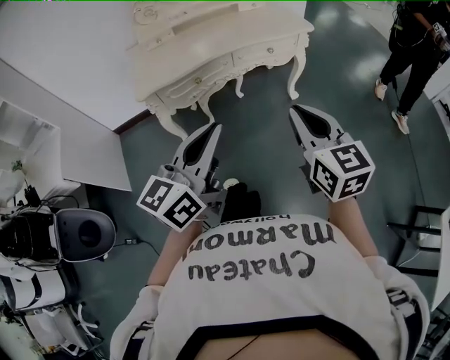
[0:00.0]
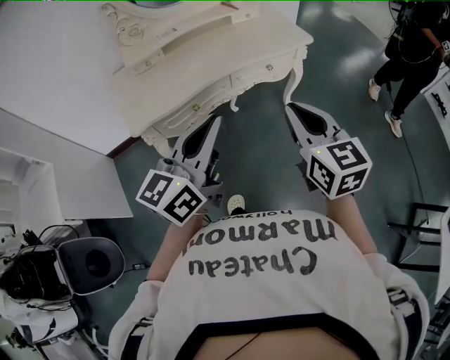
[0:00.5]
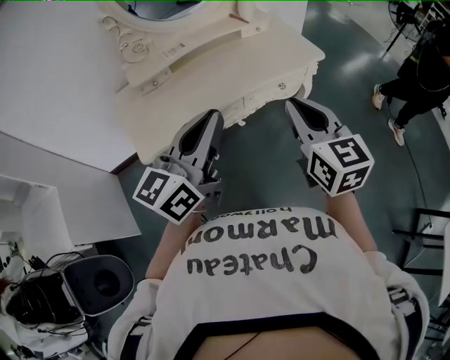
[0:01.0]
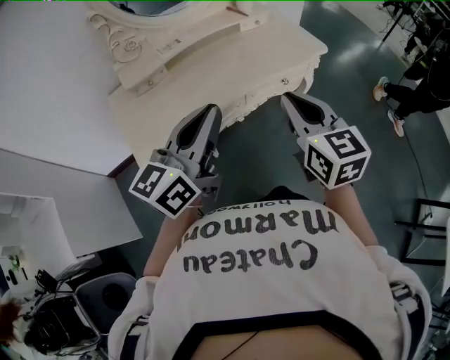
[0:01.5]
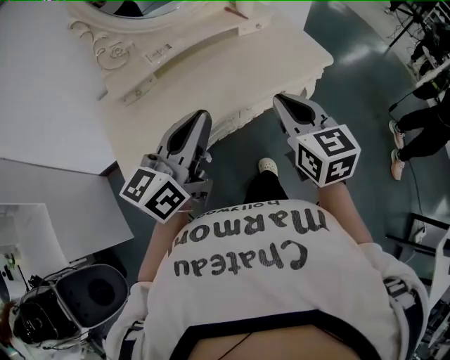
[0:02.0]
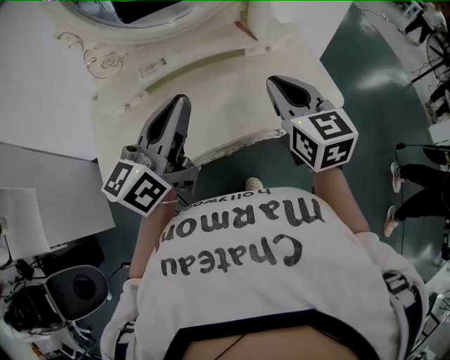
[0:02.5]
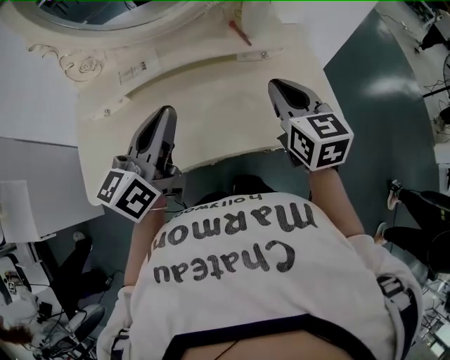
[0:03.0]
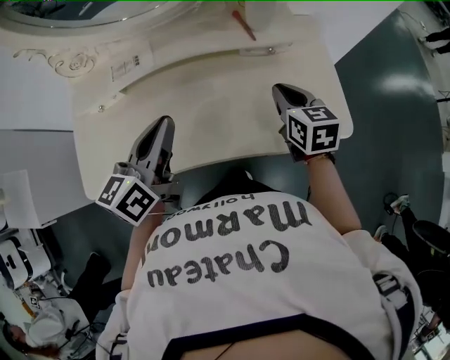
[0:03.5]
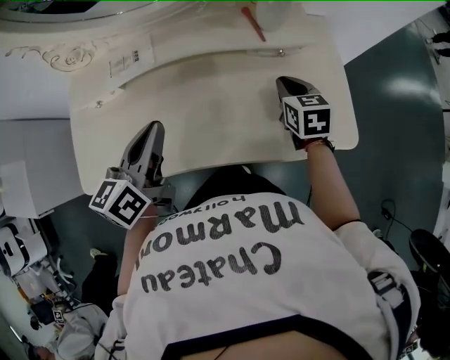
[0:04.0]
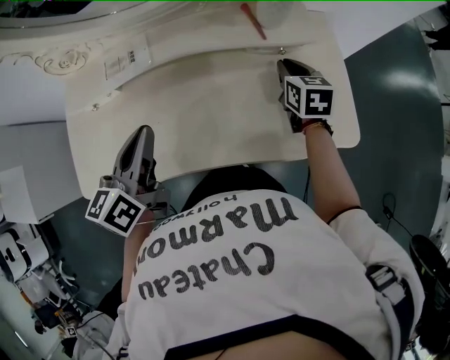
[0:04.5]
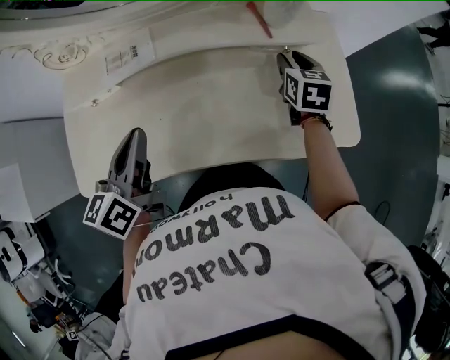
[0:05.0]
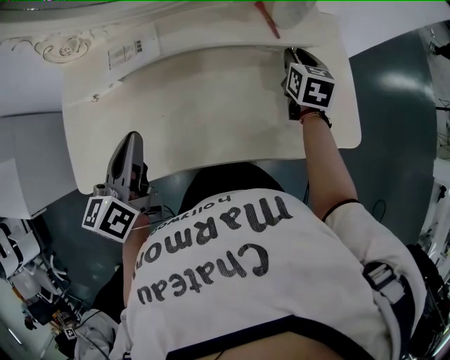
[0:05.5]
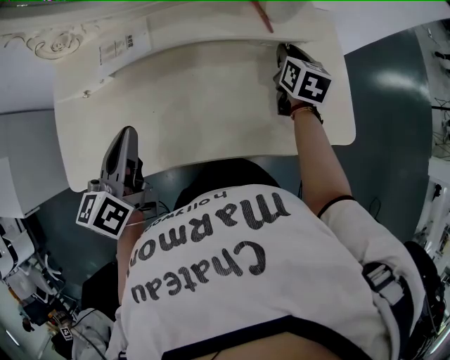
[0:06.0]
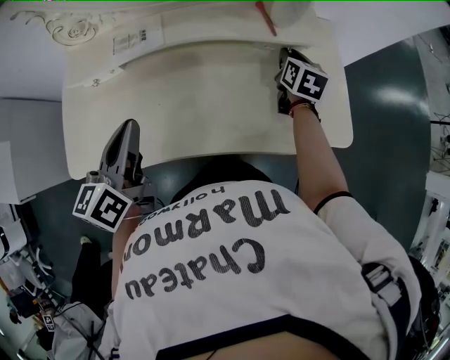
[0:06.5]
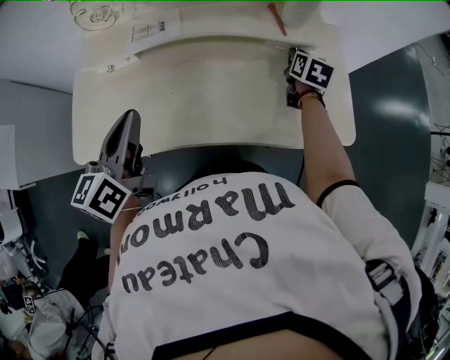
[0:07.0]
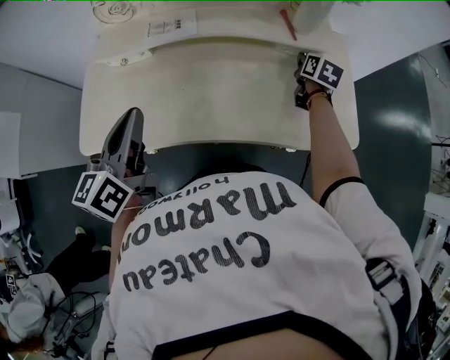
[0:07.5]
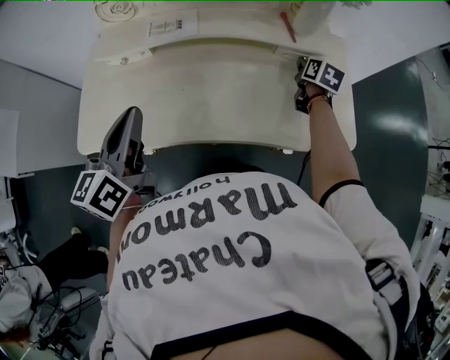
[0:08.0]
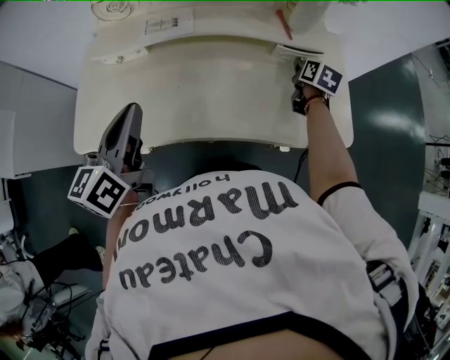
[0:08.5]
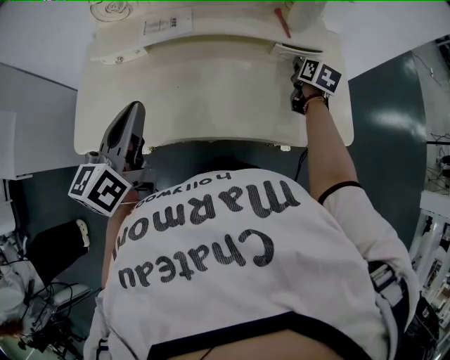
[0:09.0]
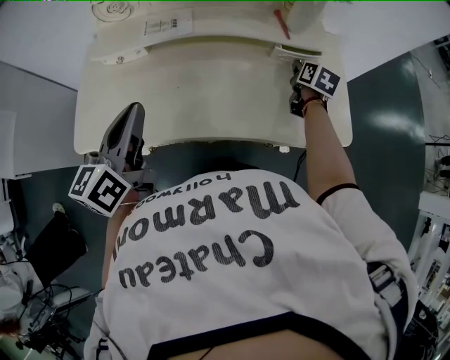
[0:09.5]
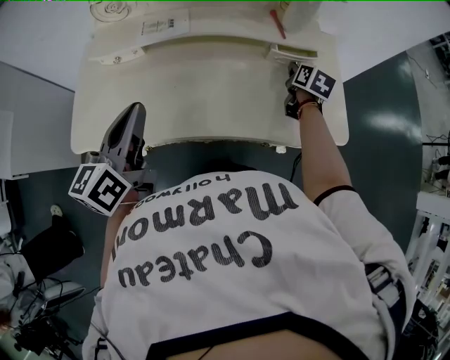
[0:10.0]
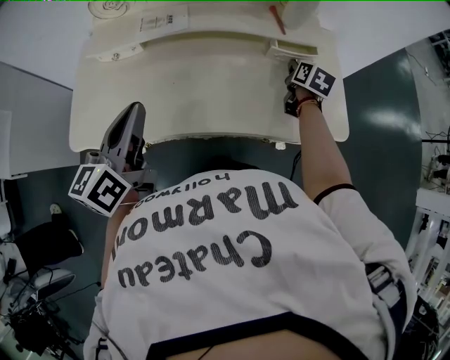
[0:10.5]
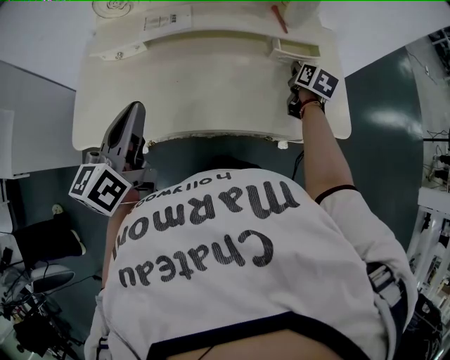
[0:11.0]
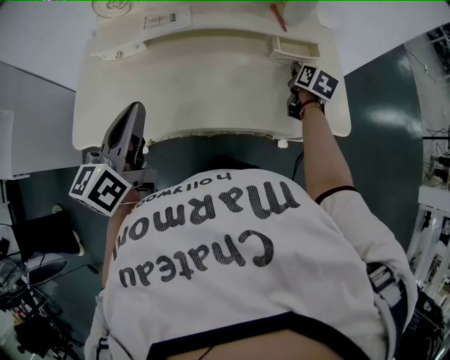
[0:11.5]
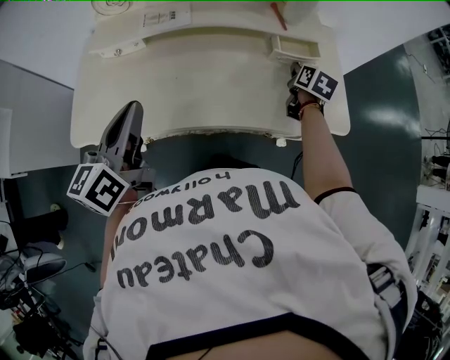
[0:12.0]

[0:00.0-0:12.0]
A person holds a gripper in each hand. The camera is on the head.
0.0 to 2.0 s: The right gripper shifts approximately 35 cm forward and to the left; the left gripper moves forward, approximately 35 cm.
2.0 to 4.0 s: The left gripper shifts some 25 cm forward and downward, and turns by about 40 degrees; the right gripper moves forward and downward, roughly 40 cm, and changes its angle by about 30 degrees.
4.0 to 6.0 s: The right gripper shifts approximately 10 cm forward; the left gripper is displaced to the left by about 5 cm.
6.0 to 8.0 s: The left gripper moves backward and upward, approximately 10 cm.
8.0 to 10.0 s: The grippers move only a little.
10.0 to 12.0 s: The grippers make only small movements.

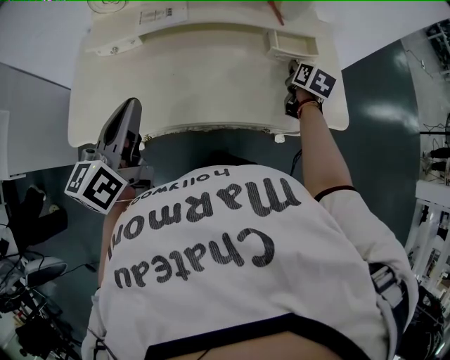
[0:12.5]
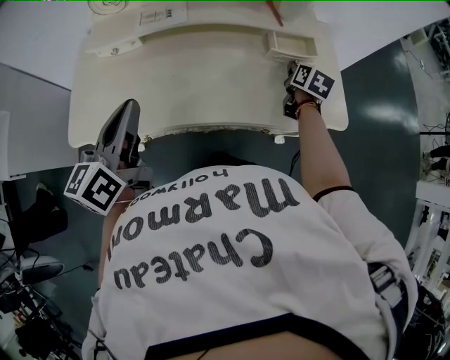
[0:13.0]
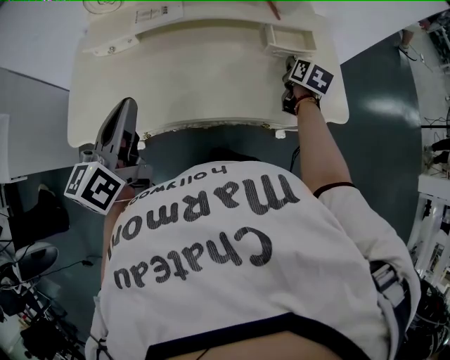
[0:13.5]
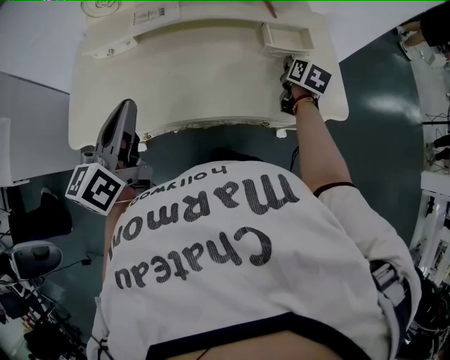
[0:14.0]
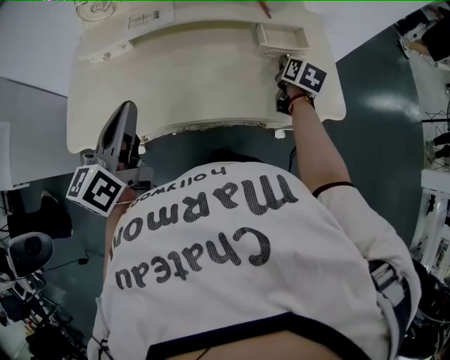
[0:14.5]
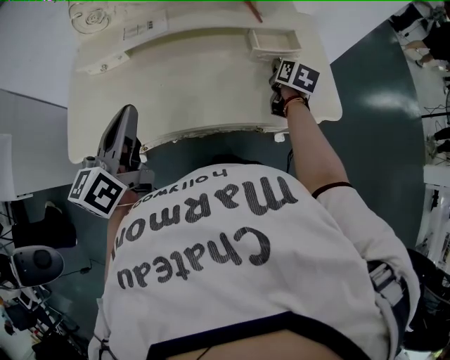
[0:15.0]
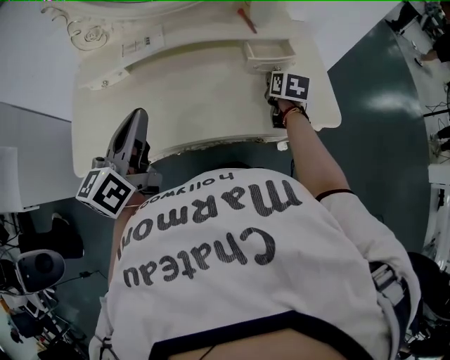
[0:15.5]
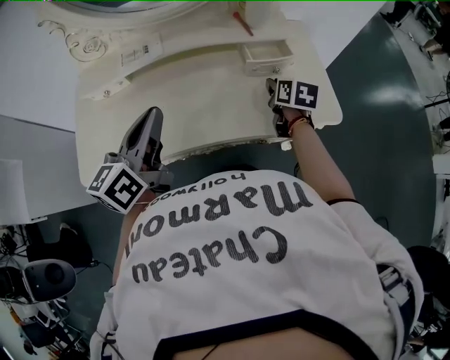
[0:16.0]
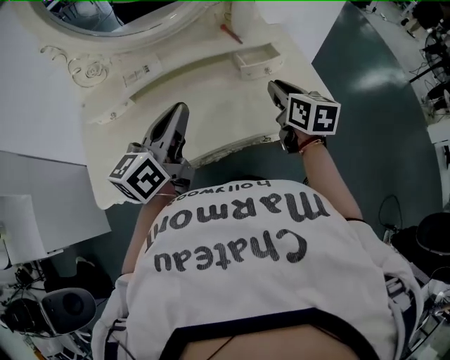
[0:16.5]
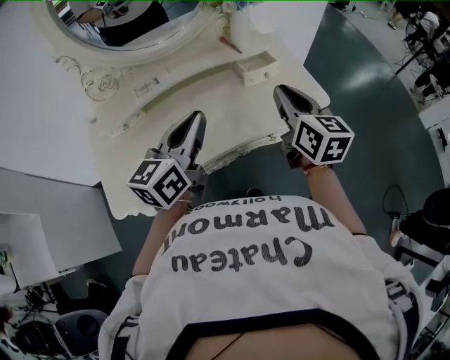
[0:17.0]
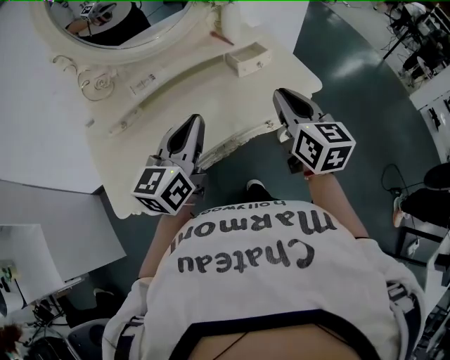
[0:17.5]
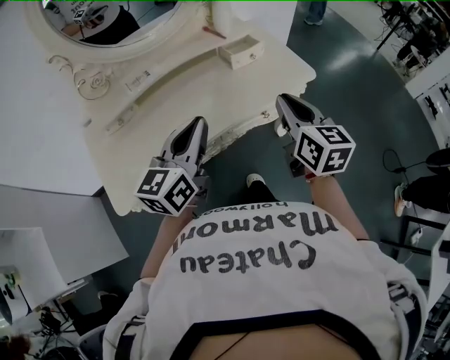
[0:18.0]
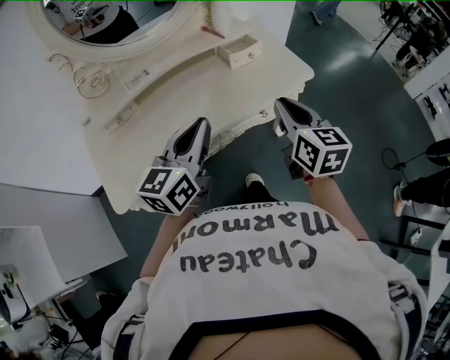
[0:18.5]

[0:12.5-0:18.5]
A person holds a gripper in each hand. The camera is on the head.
12.5 to 14.5 s: Neither gripper changes place.
14.5 to 16.5 s: The left gripper travels to the right and forward by roughly 10 cm, and swivels some 30 degrees, while the right gripper is displaced upward and backward by roughly 15 cm.
16.5 to 18.5 s: The left gripper moves backward, roughly 10 cm; the right gripper goes approximately 20 cm backward.

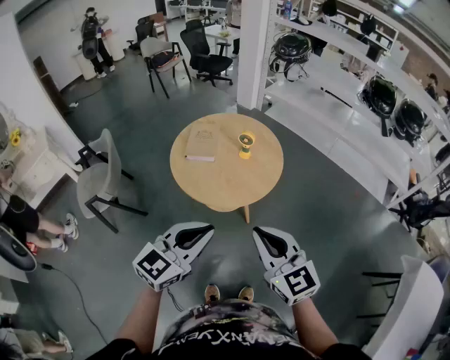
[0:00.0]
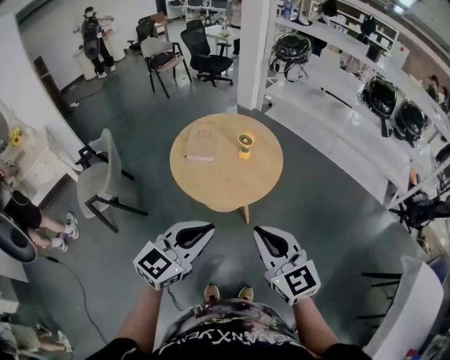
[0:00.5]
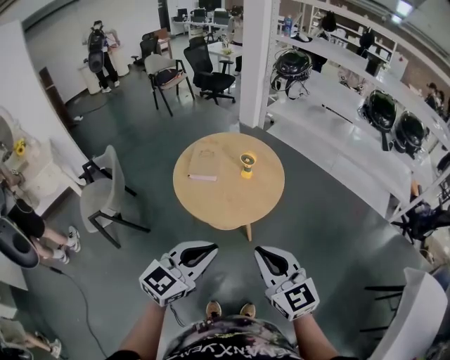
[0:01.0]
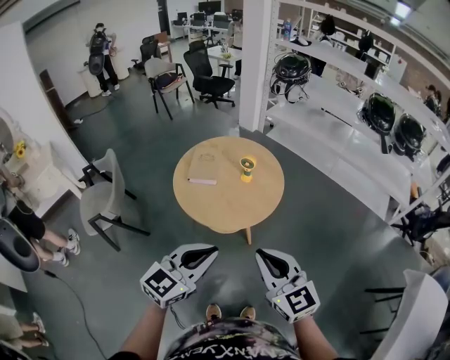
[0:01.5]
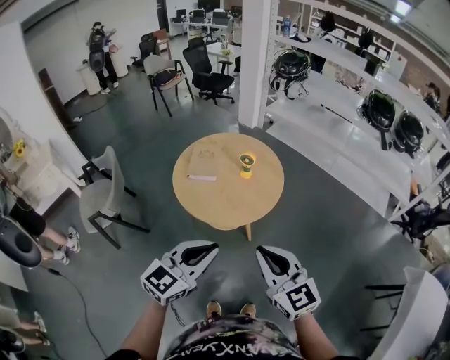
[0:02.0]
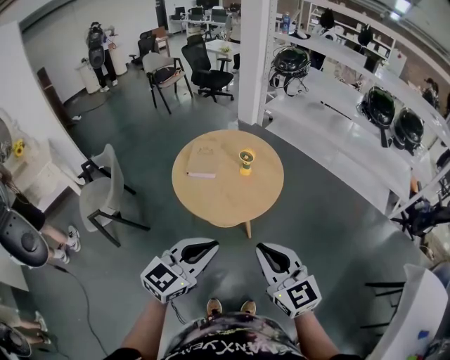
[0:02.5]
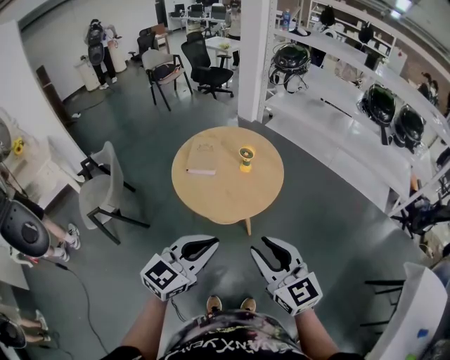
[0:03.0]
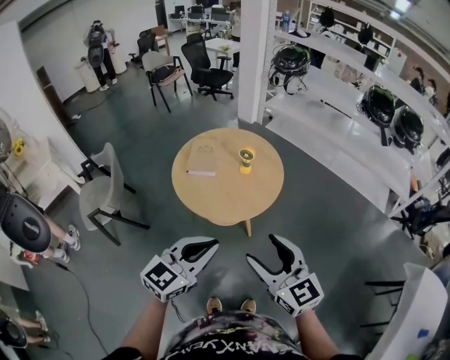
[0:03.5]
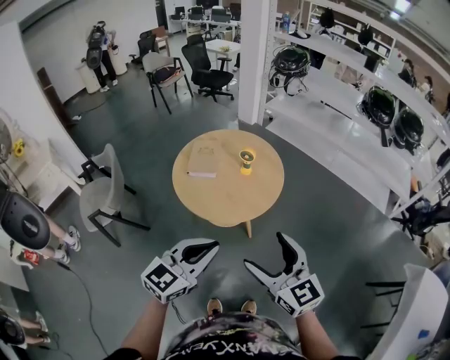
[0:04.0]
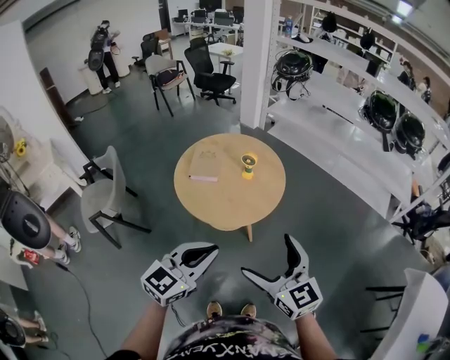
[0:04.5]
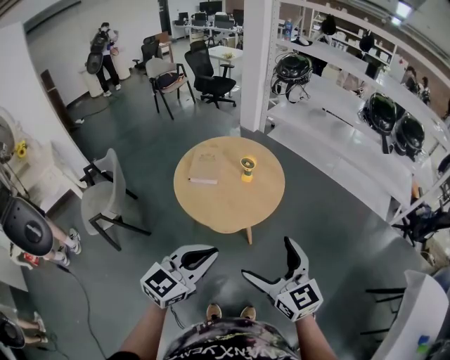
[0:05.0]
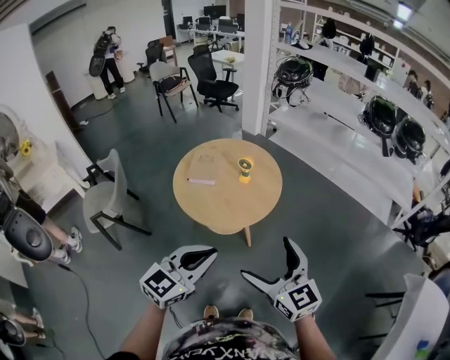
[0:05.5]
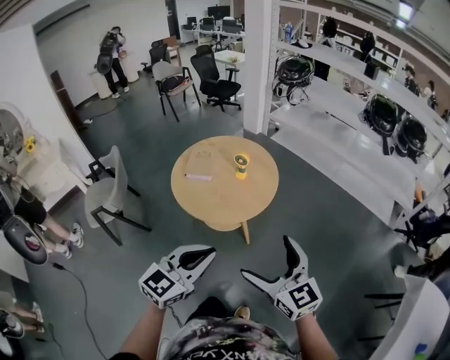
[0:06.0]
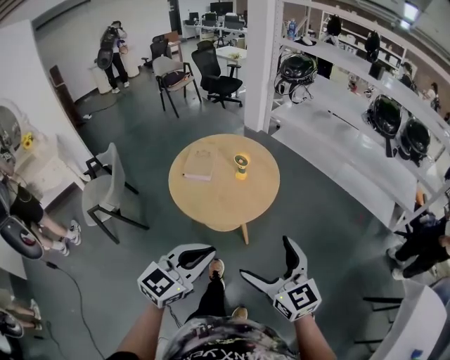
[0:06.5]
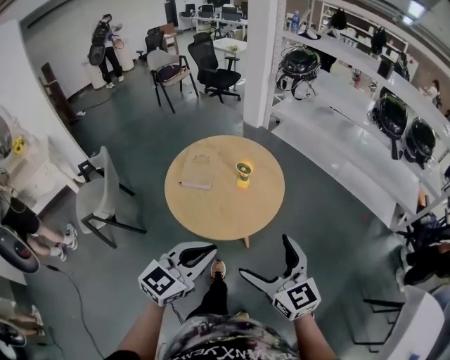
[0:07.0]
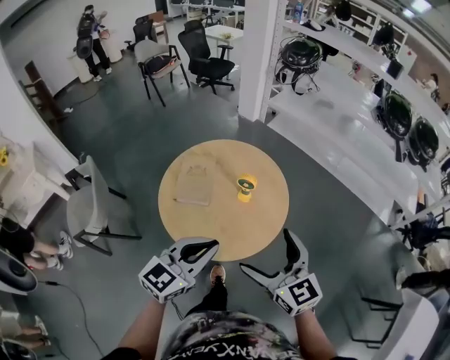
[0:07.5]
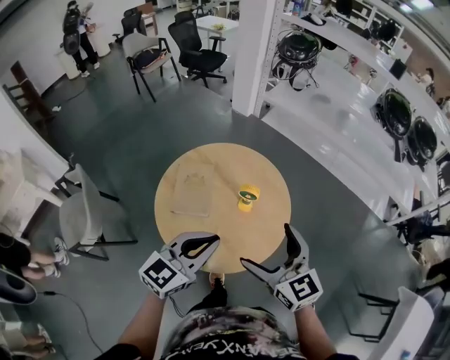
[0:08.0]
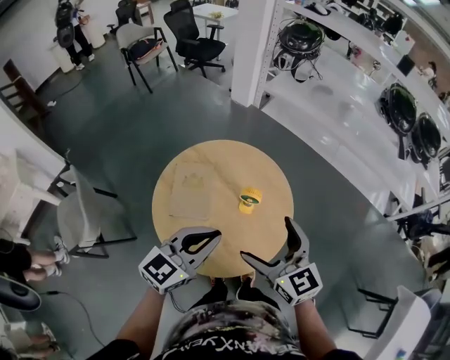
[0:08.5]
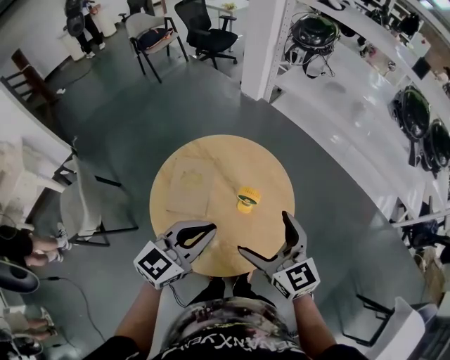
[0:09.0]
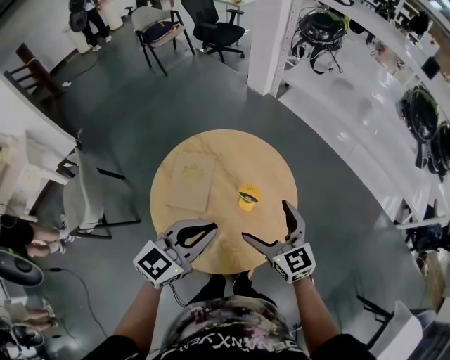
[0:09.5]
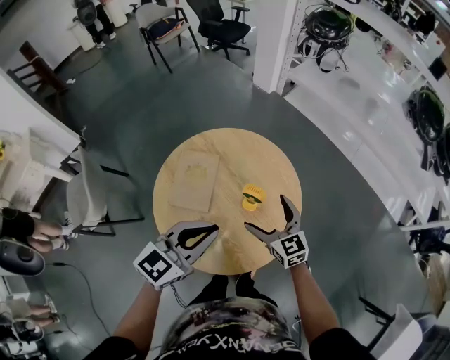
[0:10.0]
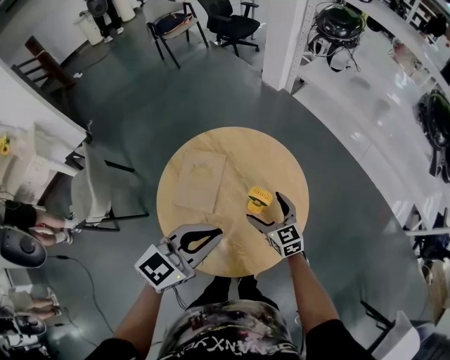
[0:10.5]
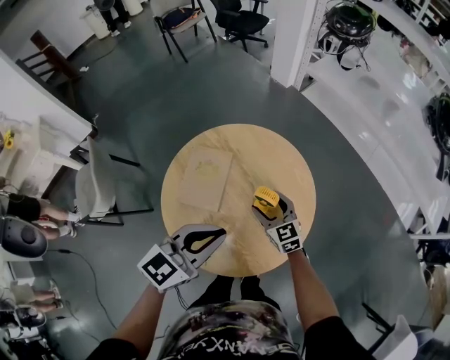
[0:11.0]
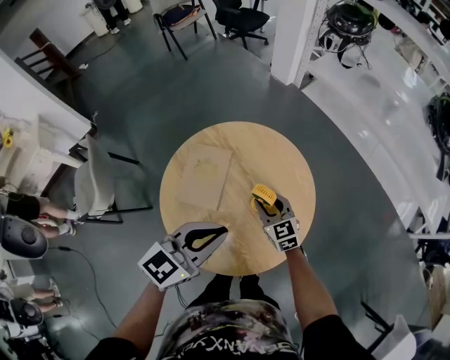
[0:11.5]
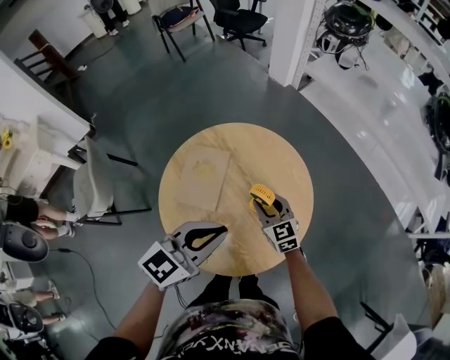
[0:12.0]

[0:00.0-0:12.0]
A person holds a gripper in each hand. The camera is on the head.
0.0 to 2.0 s: Both grippers stay put.
2.0 to 4.0 s: The right gripper opens up.
4.0 to 6.0 s: Both grippers travel together to the right, about 5 cm.
6.0 to 8.0 s: The grippers both shift forward by approximately 35 cm.
8.0 to 10.0 s: The right gripper heads downward and forward, covering roughly 25 cm; the left gripper heads forward, covering some 10 cm.
10.0 to 12.0 s: The right gripper goes about 5 cm downward, and closes up.
